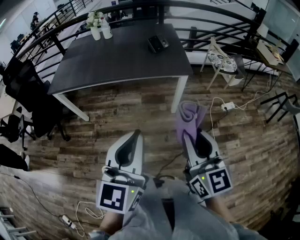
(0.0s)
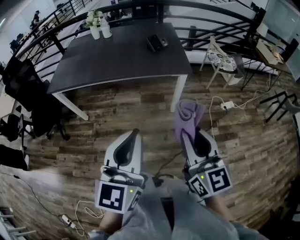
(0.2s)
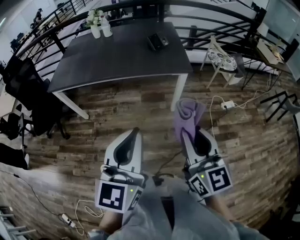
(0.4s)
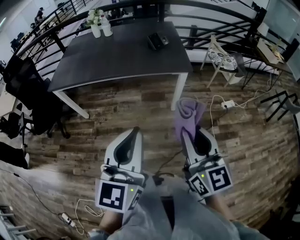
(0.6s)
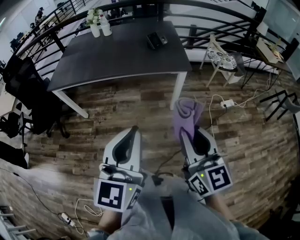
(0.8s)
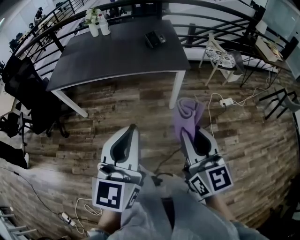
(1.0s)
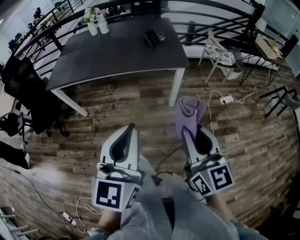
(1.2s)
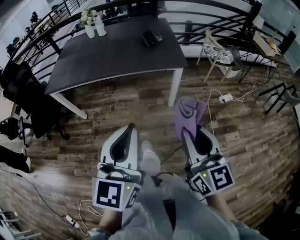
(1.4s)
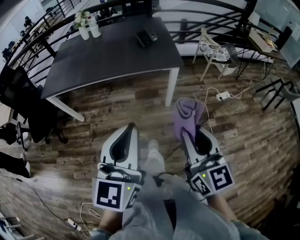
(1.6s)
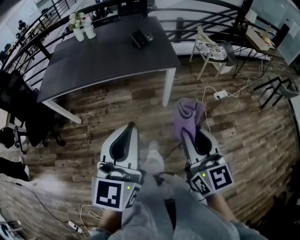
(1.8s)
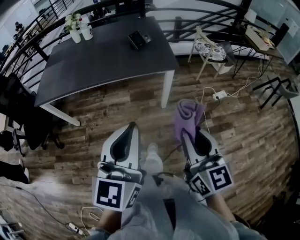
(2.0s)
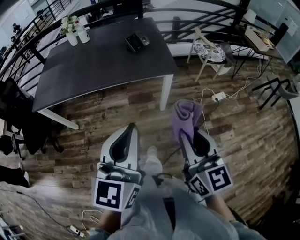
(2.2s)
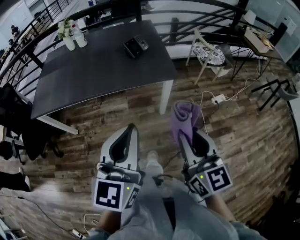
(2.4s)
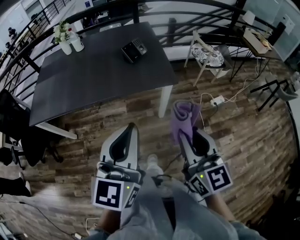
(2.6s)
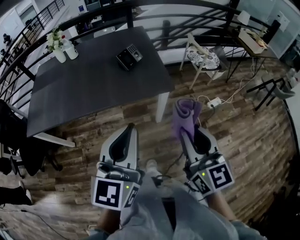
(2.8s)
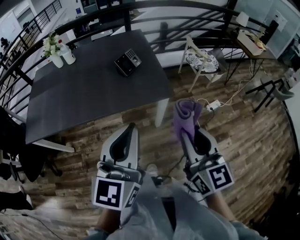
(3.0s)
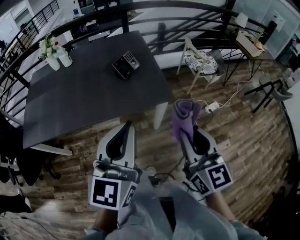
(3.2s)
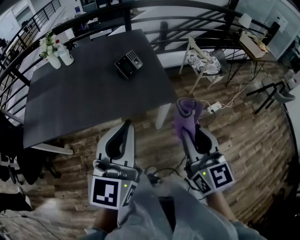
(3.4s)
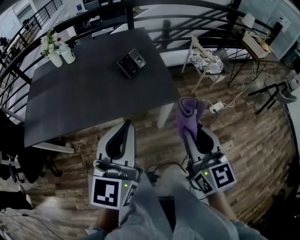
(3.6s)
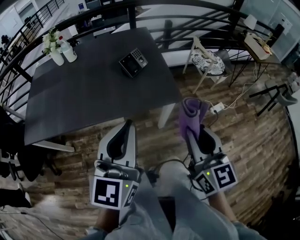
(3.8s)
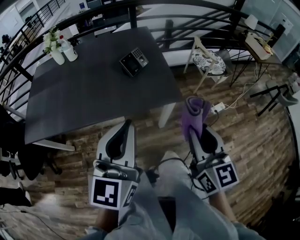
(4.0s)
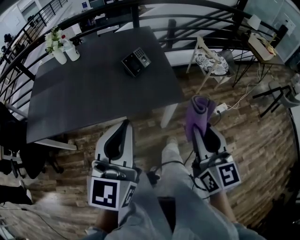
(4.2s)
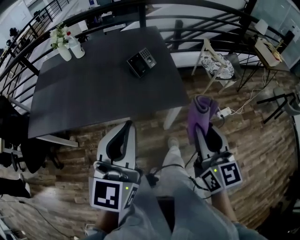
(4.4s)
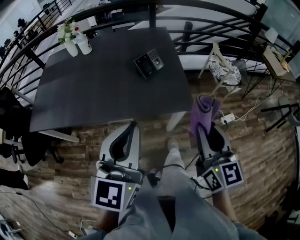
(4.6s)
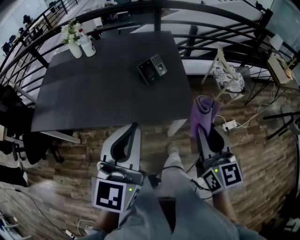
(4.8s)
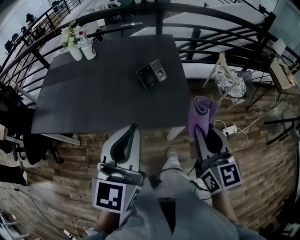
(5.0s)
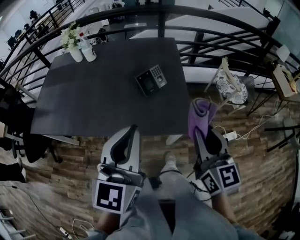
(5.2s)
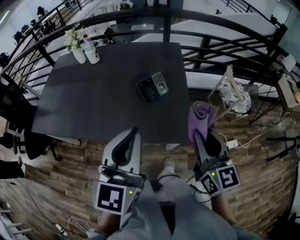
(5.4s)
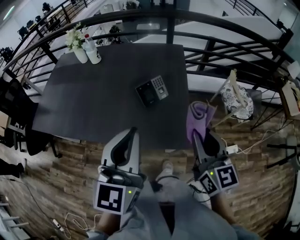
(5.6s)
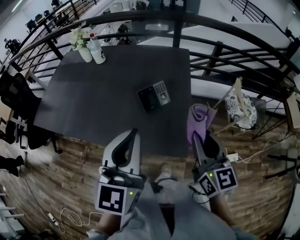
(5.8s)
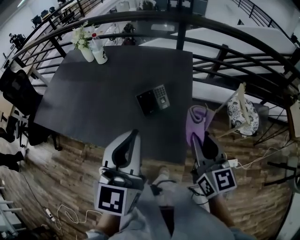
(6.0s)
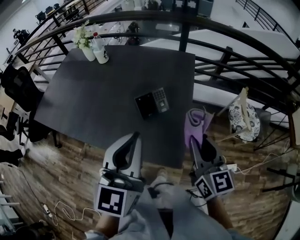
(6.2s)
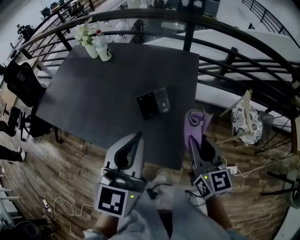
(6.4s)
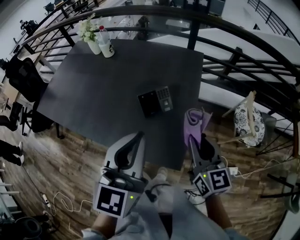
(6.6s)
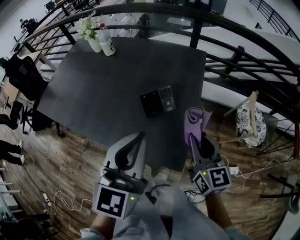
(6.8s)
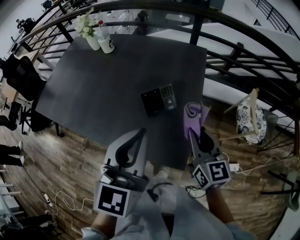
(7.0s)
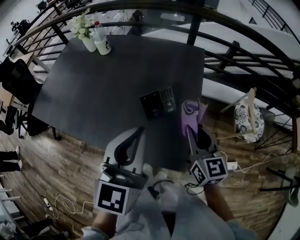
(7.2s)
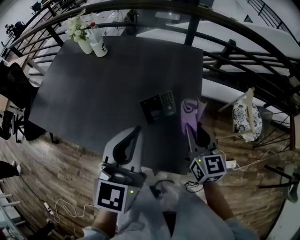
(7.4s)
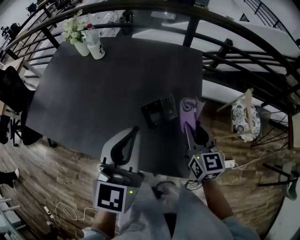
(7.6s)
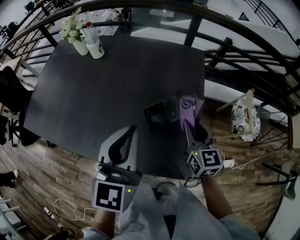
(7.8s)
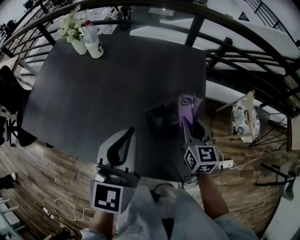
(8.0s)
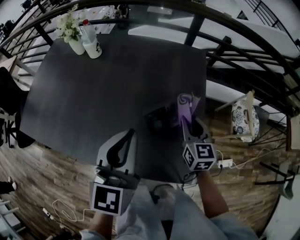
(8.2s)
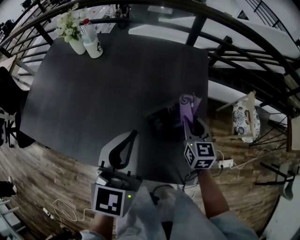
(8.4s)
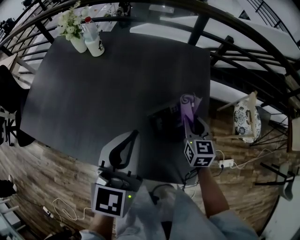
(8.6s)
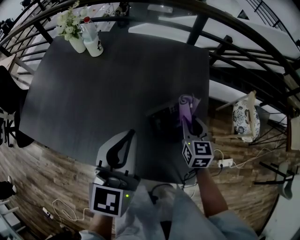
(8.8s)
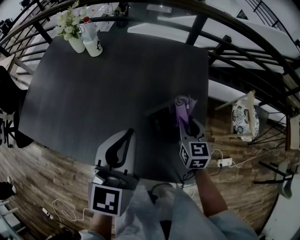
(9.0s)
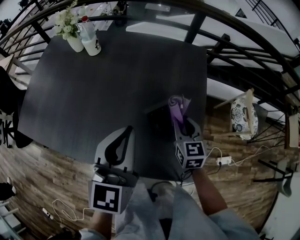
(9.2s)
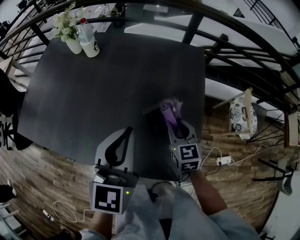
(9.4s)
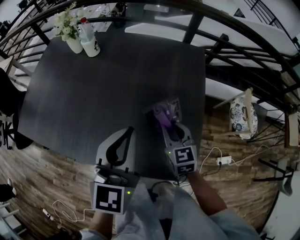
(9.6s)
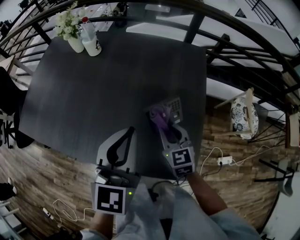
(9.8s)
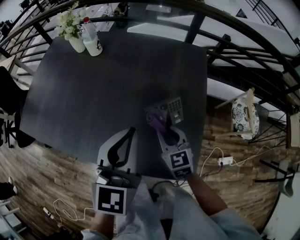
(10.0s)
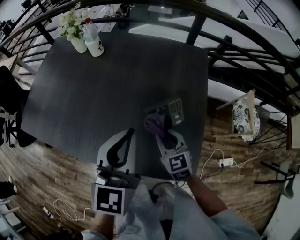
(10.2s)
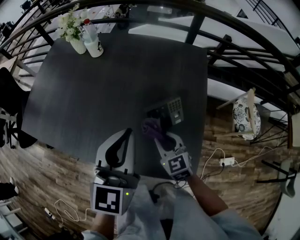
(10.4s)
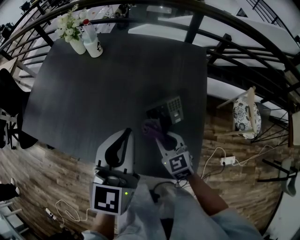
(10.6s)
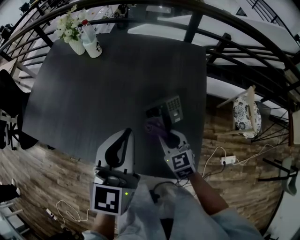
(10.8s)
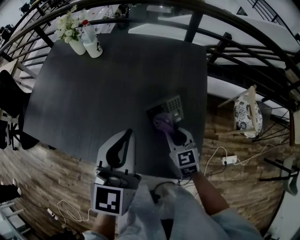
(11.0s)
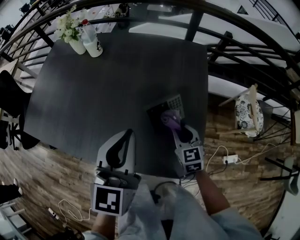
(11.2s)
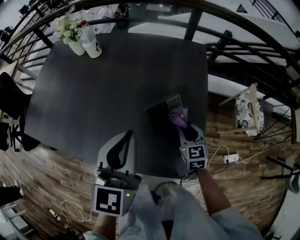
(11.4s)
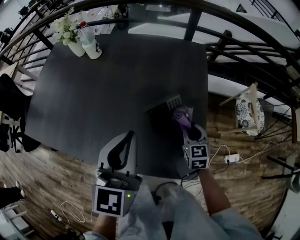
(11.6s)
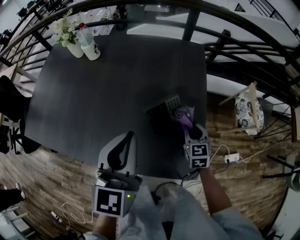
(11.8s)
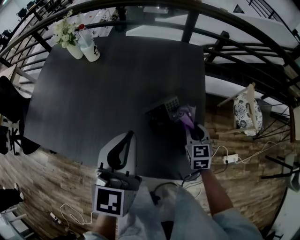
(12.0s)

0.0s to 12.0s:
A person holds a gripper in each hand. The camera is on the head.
0.0s to 1.6s: The grippers stay close to where they were, moving slightly.
1.6s to 3.0s: The grippers both shift forward by some 25 cm.
3.0s to 4.4s: The two grippers go about 5 cm forward.
4.4s to 6.0s: The left gripper goes approximately 20 cm forward and to the right, and rotates approximately 20 degrees; the right gripper is displaced forward by some 25 cm, and changes its angle by about 20 degrees.
6.0s to 7.6s: The right gripper is displaced forward and downward by some 15 cm, while the left gripper shifts about 10 cm forward.
7.6s to 9.0s: The left gripper moves to the left, approximately 5 cm; the right gripper goes about 10 cm downward and forward.
9.0s to 10.4s: The right gripper goes about 15 cm to the left and backward, and rotates some 30 degrees.
10.4s to 12.0s: The right gripper heads to the right, covering approximately 15 cm, and changes its angle by roughly 30 degrees.

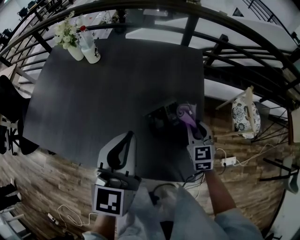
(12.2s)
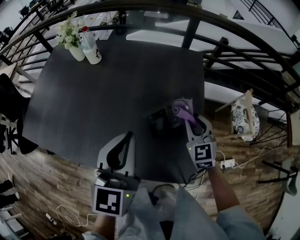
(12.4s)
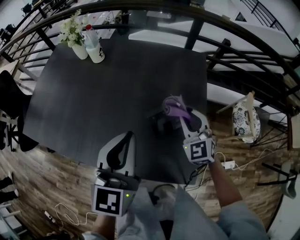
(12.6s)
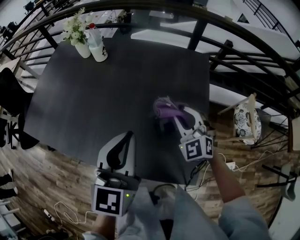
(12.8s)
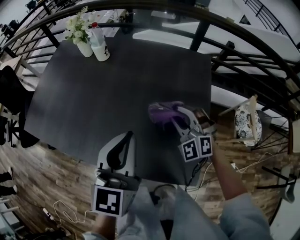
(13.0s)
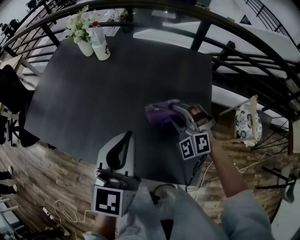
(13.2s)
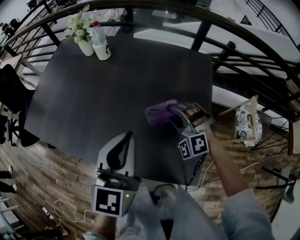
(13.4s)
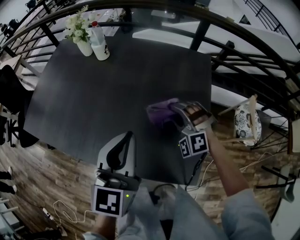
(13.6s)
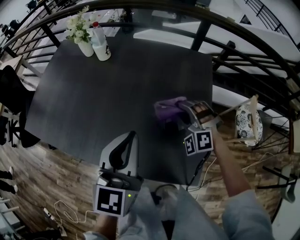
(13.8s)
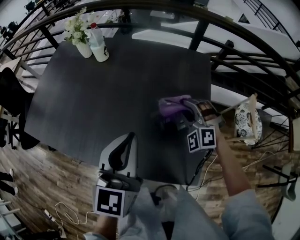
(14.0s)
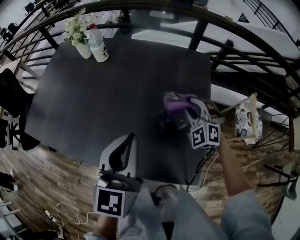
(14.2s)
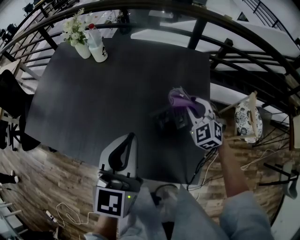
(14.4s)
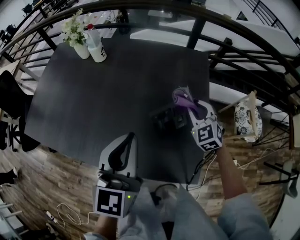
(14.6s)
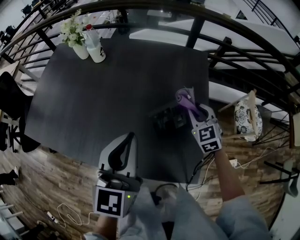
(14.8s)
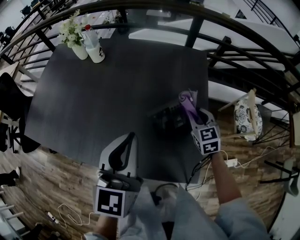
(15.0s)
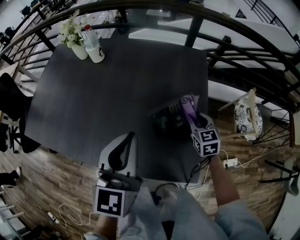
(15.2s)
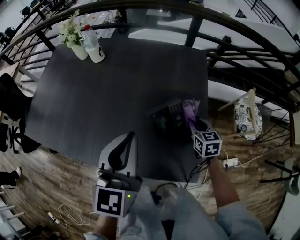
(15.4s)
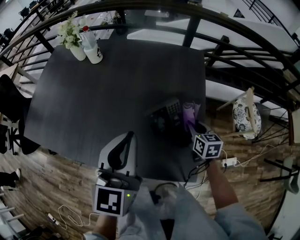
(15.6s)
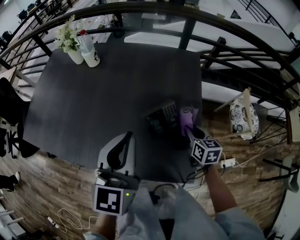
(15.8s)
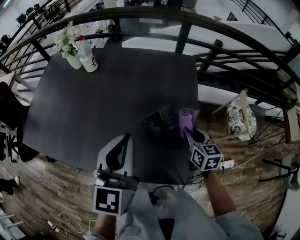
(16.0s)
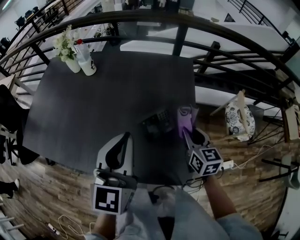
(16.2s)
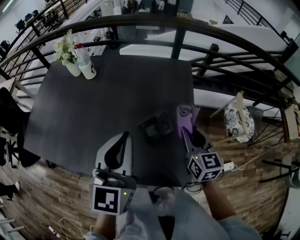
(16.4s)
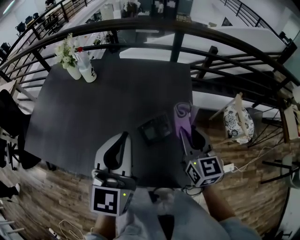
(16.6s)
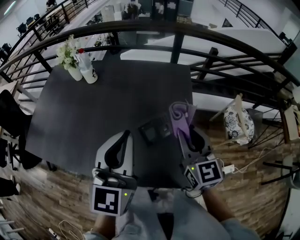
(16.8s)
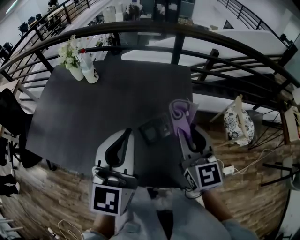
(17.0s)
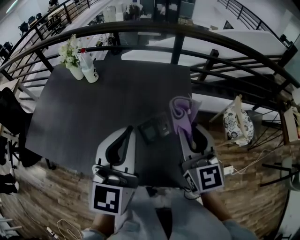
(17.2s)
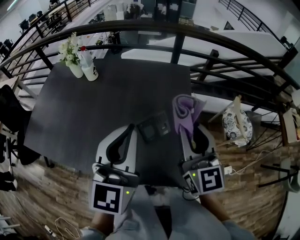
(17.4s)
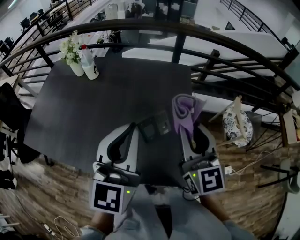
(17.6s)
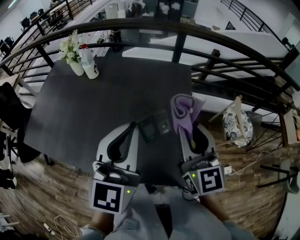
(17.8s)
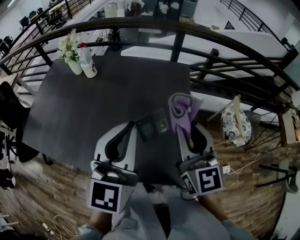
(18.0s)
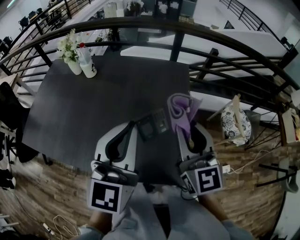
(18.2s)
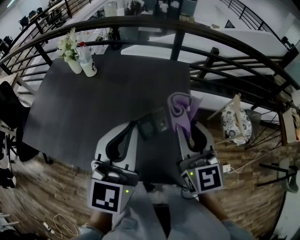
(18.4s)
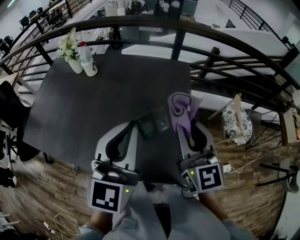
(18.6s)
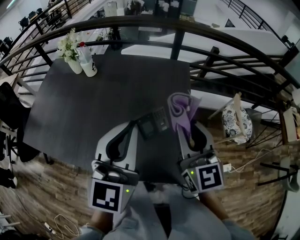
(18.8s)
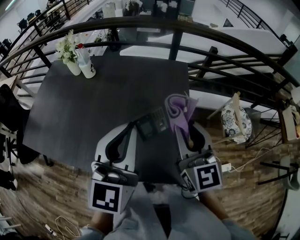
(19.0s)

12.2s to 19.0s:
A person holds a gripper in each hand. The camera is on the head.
12.2s to 13.6s: The right gripper travels to the left by roughly 15 cm, and rotates around the line of its fingers by approximately 70 degrees, counterclockwise from behind.
13.6s to 15.0s: The right gripper shifts some 15 cm to the right, and rolls clockwise, seen from behind, by roughly 70 degrees.
15.0s to 16.2s: The right gripper heads backward and upward, covering roughly 10 cm, and rotates about 30 degrees.
16.2s to 17.6s: The right gripper goes roughly 20 cm upward, and changes its angle by roughly 30 degrees; the left gripper moves upward, approximately 5 cm.
17.6s to 19.0s: The grippers make only small movements.

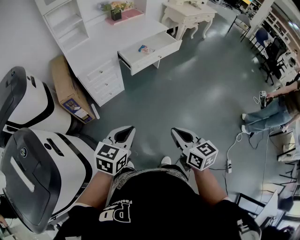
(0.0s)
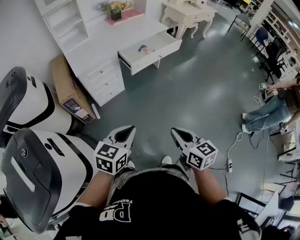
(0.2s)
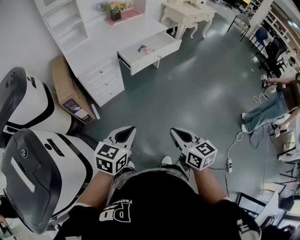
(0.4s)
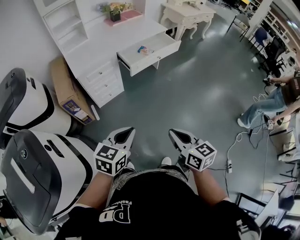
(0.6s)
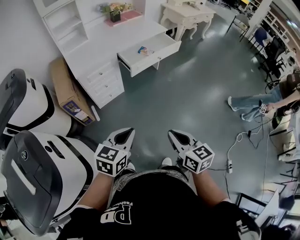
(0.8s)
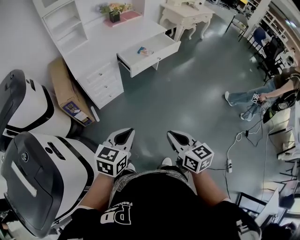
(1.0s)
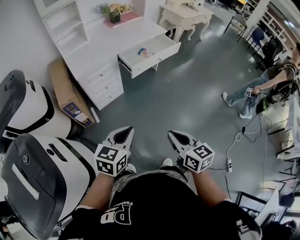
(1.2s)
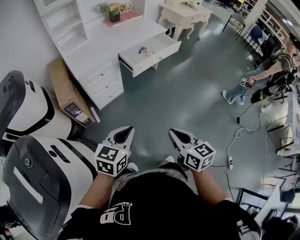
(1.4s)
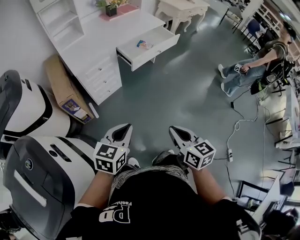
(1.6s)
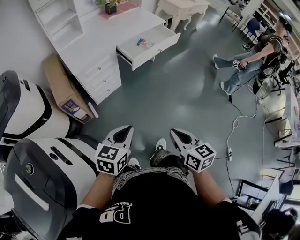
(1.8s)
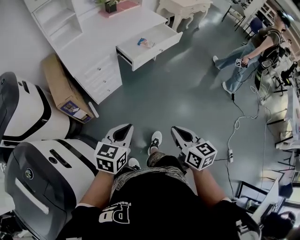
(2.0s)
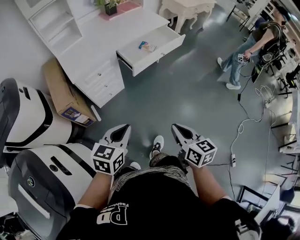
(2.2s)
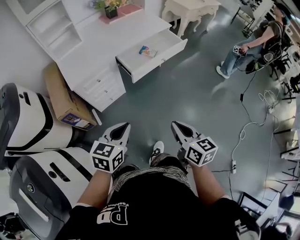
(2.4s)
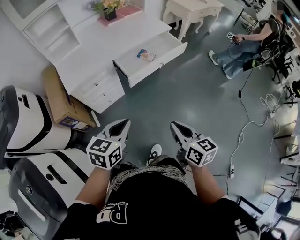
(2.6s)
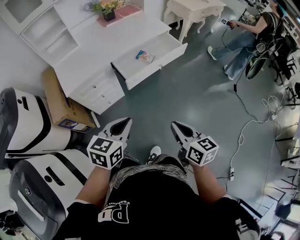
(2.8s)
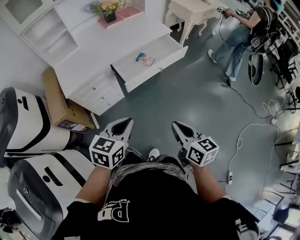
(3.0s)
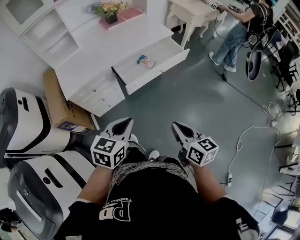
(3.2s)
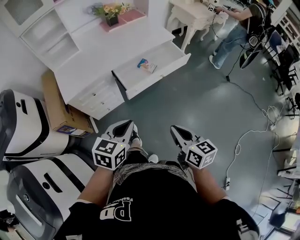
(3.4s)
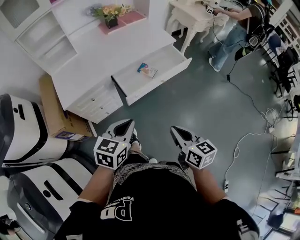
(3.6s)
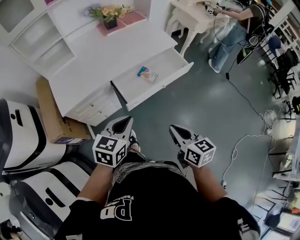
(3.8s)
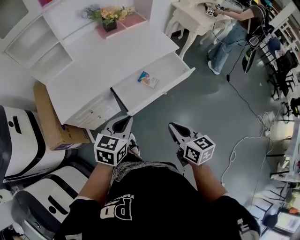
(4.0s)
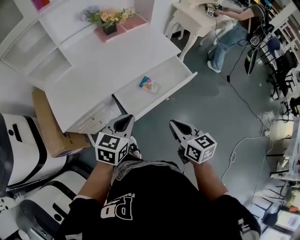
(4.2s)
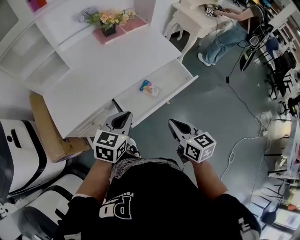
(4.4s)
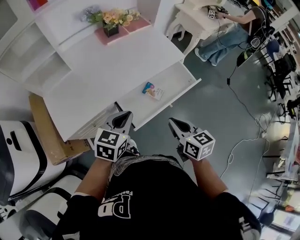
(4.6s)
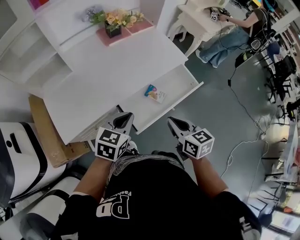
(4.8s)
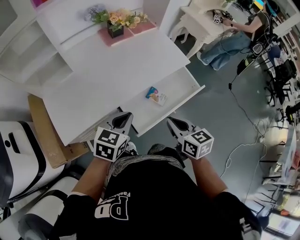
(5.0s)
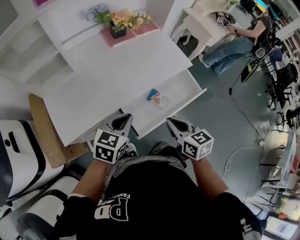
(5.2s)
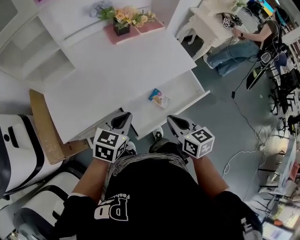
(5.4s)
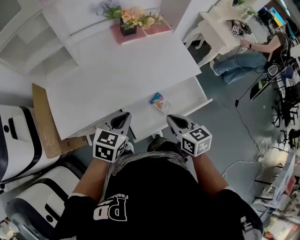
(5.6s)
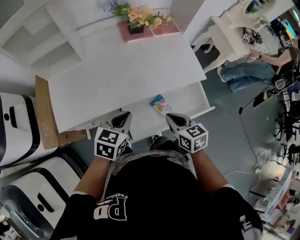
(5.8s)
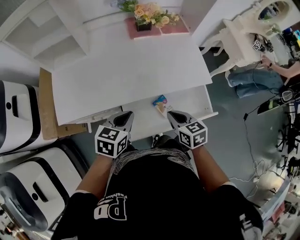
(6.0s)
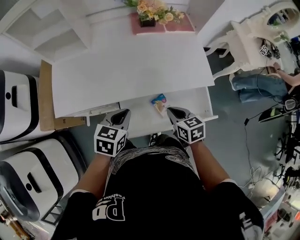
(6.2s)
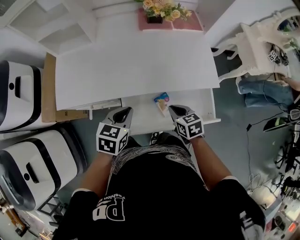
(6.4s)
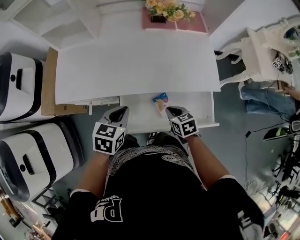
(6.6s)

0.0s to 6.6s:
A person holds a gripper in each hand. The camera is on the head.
0.0s to 1.6s: The grippers both shift to the left by some 10 cm.
1.6s to 3.2s: Both grippers move forward and to the right, some 30 cm.
3.2s to 5.0s: The grippers both shift forward by roughly 35 cm.
5.0s to 6.6s: The right gripper goes about 20 cm downward, and swivels approximately 40 degrees; the left gripper ends up roughly 10 cm from where it was, and swivels approximately 40 degrees.
